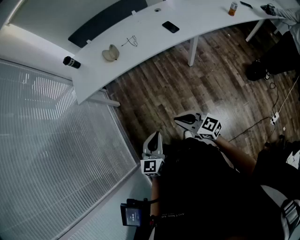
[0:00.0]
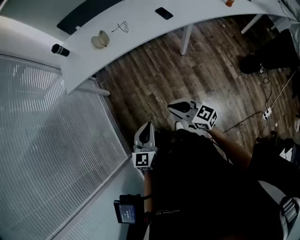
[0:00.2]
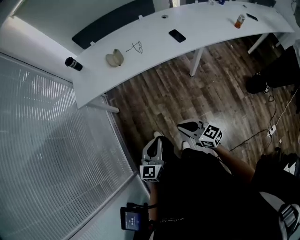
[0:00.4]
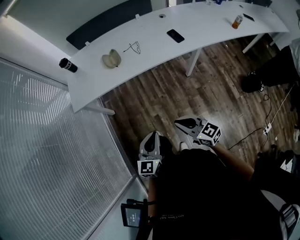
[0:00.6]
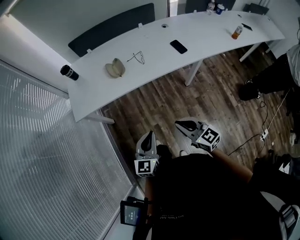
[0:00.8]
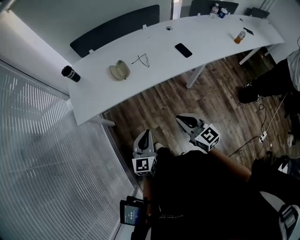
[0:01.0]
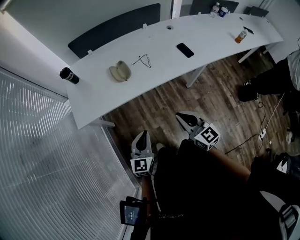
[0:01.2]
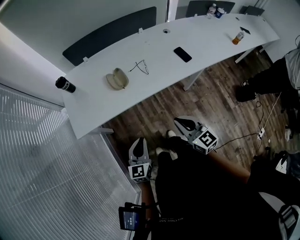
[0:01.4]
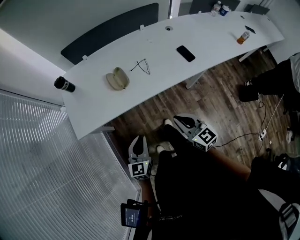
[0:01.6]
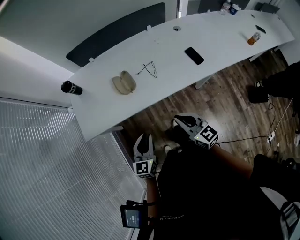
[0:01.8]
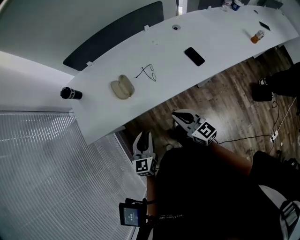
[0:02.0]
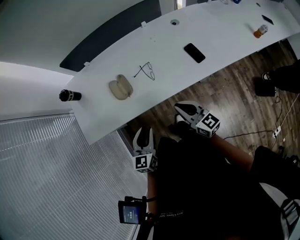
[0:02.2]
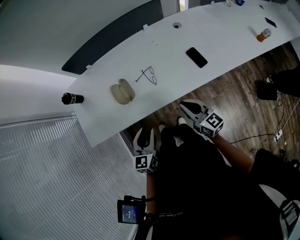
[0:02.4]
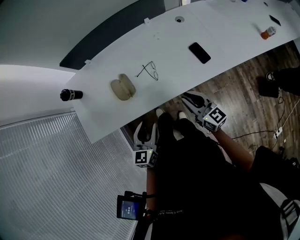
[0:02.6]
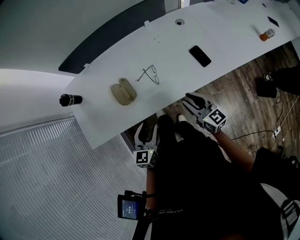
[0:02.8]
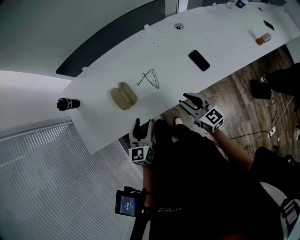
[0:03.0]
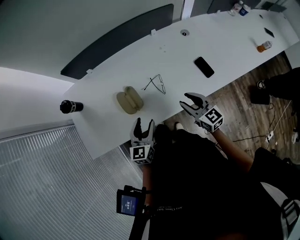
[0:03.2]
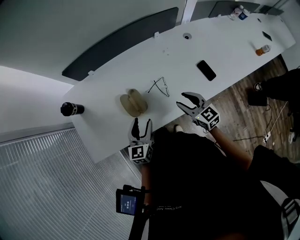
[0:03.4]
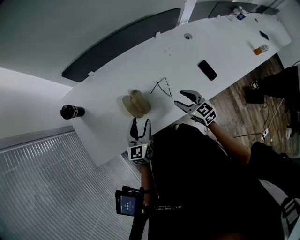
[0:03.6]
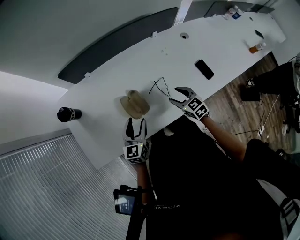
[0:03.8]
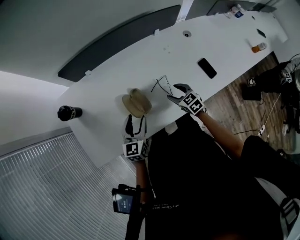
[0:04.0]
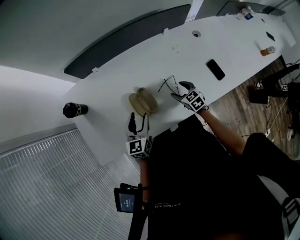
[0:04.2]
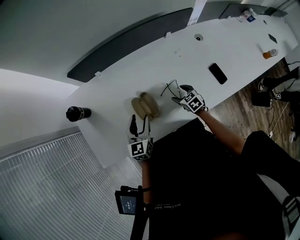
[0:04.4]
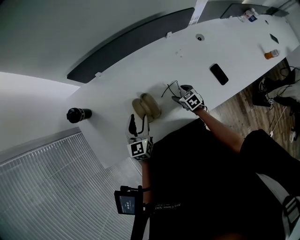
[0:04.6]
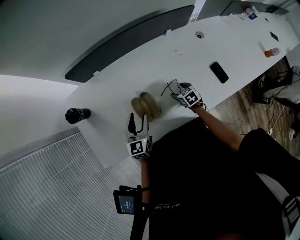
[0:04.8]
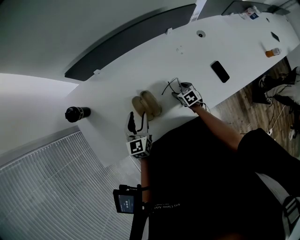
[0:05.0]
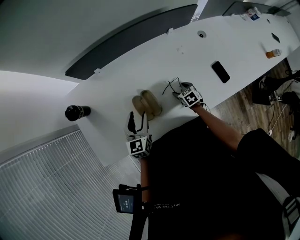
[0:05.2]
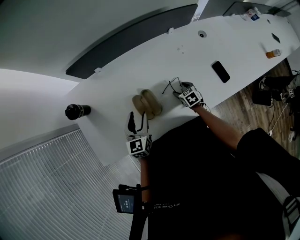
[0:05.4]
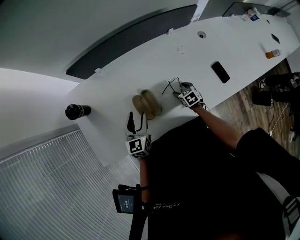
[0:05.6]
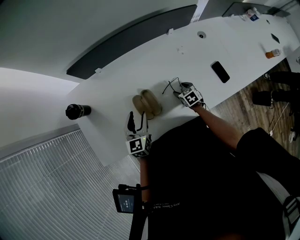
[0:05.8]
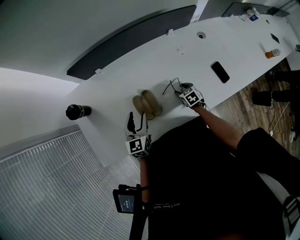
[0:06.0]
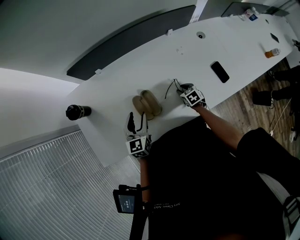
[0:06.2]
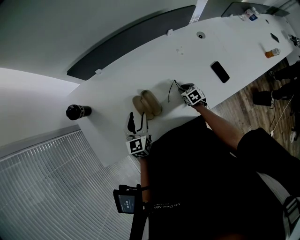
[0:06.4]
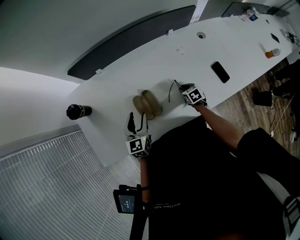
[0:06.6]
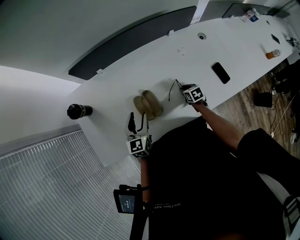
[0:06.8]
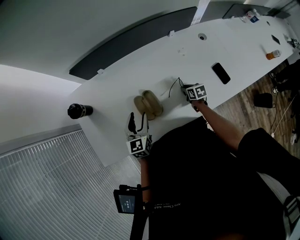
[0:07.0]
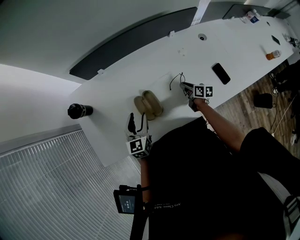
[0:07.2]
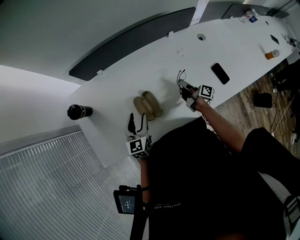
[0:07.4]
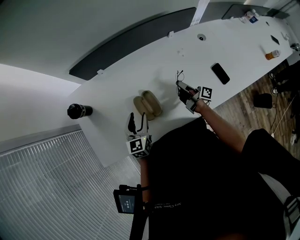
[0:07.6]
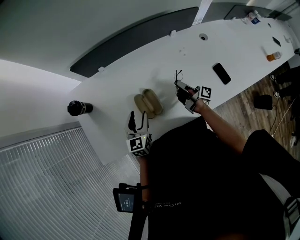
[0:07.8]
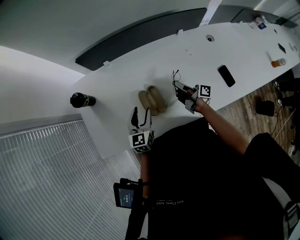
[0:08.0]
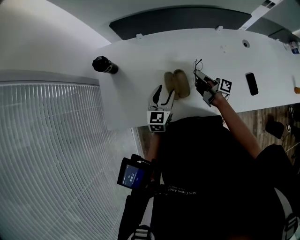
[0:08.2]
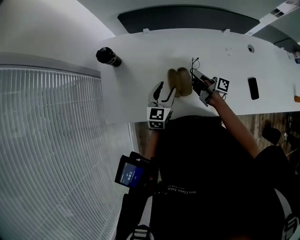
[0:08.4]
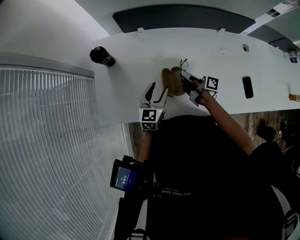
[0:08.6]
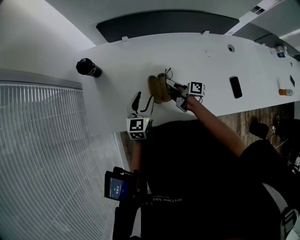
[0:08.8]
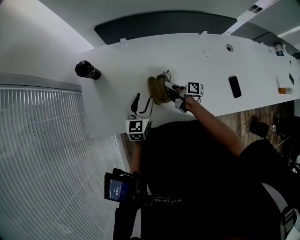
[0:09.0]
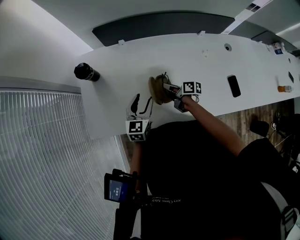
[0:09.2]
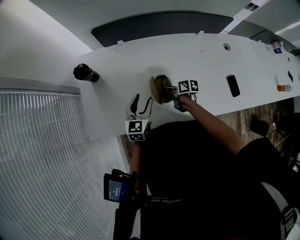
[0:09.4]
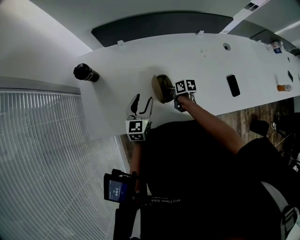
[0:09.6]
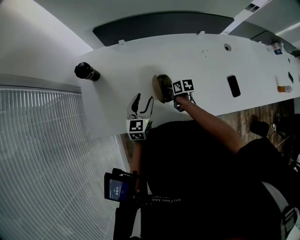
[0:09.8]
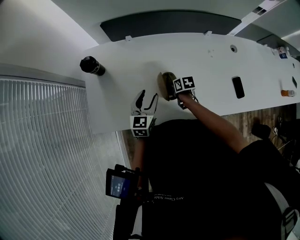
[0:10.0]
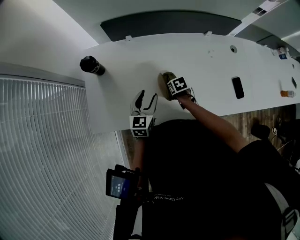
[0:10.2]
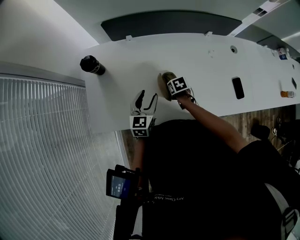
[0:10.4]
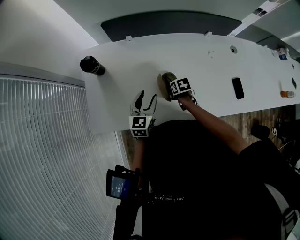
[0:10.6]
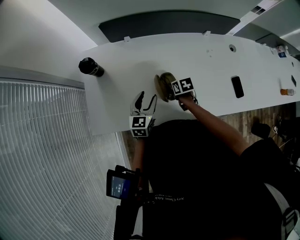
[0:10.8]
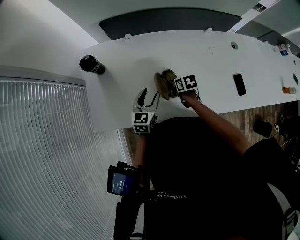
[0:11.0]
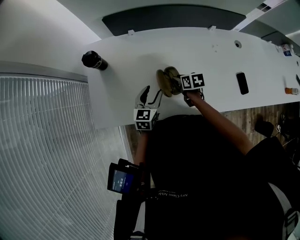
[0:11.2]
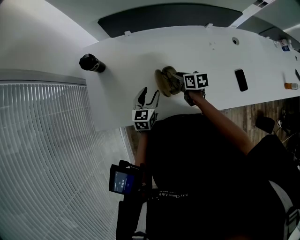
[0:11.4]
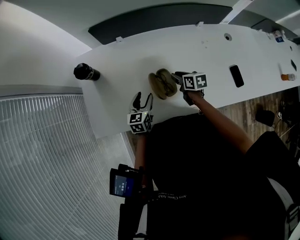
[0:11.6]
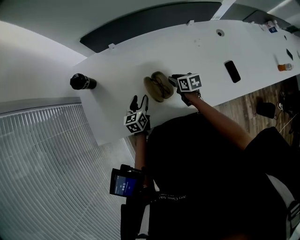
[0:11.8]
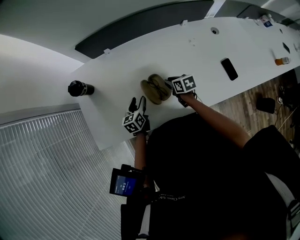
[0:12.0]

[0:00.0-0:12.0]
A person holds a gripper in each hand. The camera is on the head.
0:00.0 to 0:01.6: The grippers both shift forward by about 35 cm. The right gripper changes its angle by approximately 30 degrees.
0:01.6 to 0:03.0: The right gripper goes some 25 cm forward and to the right, and opens its fingers, while the left gripper shifts some 25 cm forward, and opens its fingers.
0:03.0 to 0:04.4: The right gripper goes approximately 30 cm downward, forward and to the left, points its fingers approximately 40 degrees further downward, and opens up. The left gripper is displaced forward and to the left by about 20 cm.
0:04.4 to 0:06.0: The right gripper heads downward, covering about 5 cm.
0:06.0 to 0:07.6: The right gripper moves upward, roughly 10 cm, tilts its fingers some 60 degrees upward, and closes up.
0:07.6 to 0:09.0: The right gripper travels to the left by about 20 cm, and rotates roughly 30 degrees.
0:09.0 to 0:10.4: The right gripper shifts roughly 5 cm downward, and tilts its fingers roughly 50 degrees downward.
0:10.4 to 0:12.0: The left gripper travels downward by some 10 cm, and turns by roughly 20 degrees, while the right gripper is displaced to the right by approximately 5 cm, and swivels approximately 20 degrees.

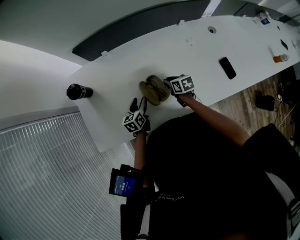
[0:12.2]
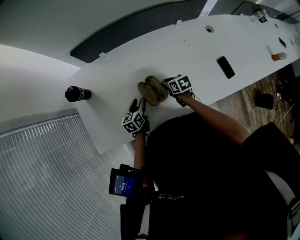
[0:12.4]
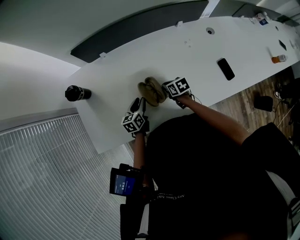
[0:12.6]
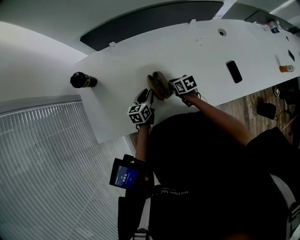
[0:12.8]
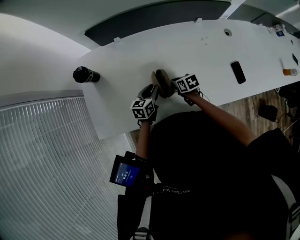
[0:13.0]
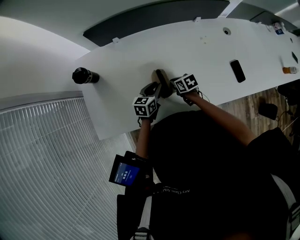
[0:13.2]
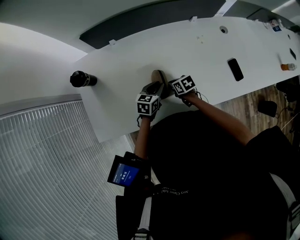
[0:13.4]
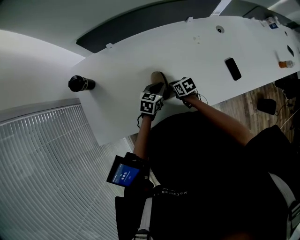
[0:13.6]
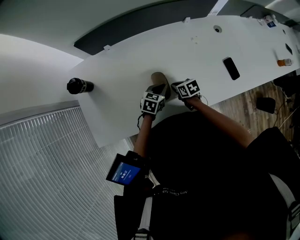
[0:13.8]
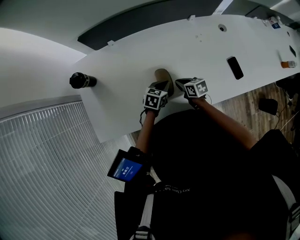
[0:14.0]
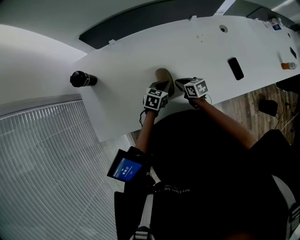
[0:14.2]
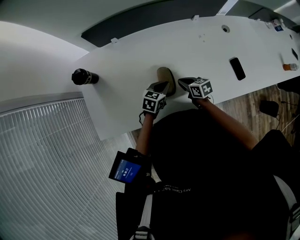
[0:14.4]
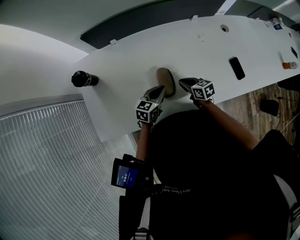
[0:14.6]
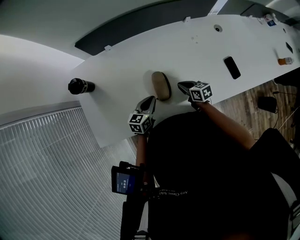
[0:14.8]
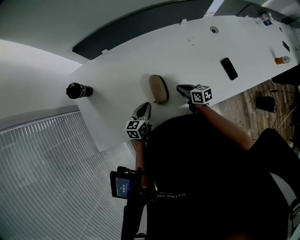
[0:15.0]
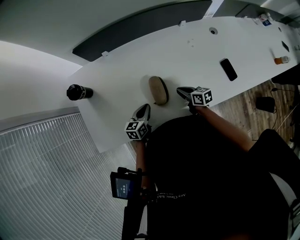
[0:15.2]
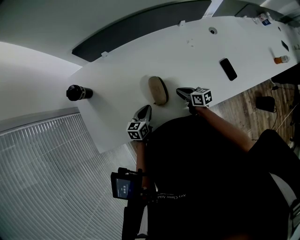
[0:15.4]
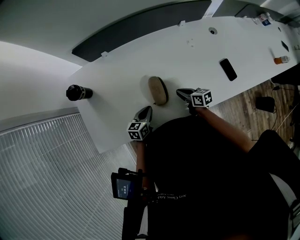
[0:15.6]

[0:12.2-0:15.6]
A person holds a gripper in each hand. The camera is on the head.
0:12.2 to 0:13.8: The left gripper goes approximately 15 cm to the right, swivels roughly 40 degrees, and closes its fingers, while the right gripper changes place by roughly 5 cm.
0:13.8 to 0:15.6: The right gripper moves roughly 5 cm, and changes its angle by about 20 degrees; the left gripper goes approximately 10 cm to the left and backward, and rotates about 20 degrees.

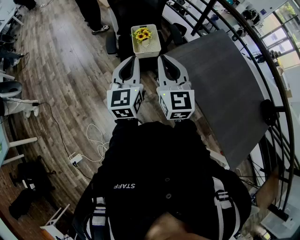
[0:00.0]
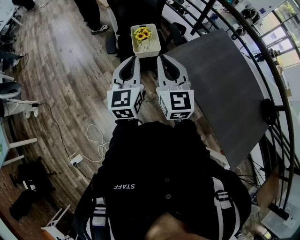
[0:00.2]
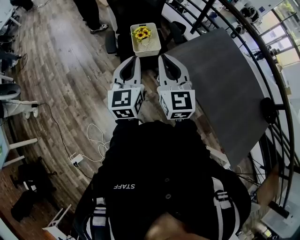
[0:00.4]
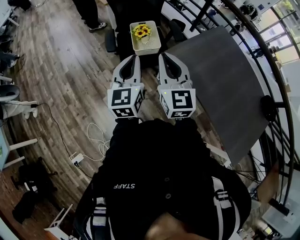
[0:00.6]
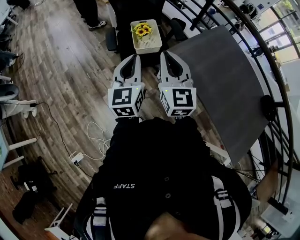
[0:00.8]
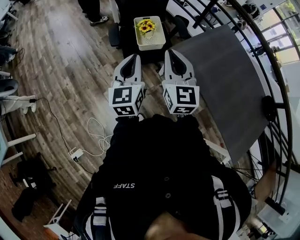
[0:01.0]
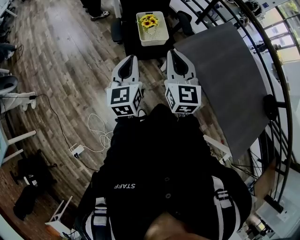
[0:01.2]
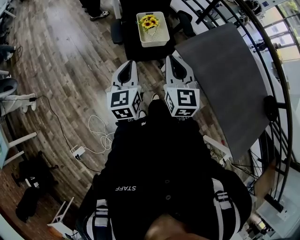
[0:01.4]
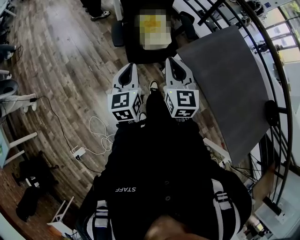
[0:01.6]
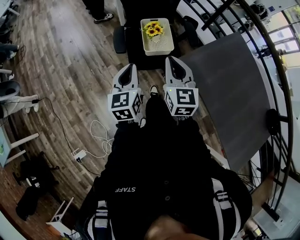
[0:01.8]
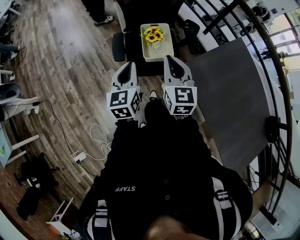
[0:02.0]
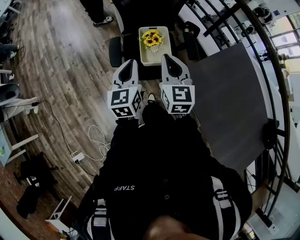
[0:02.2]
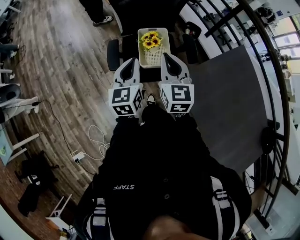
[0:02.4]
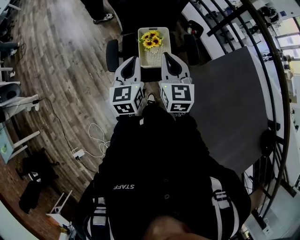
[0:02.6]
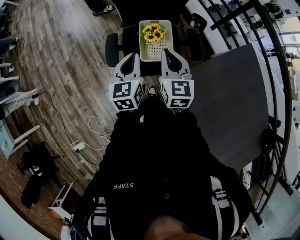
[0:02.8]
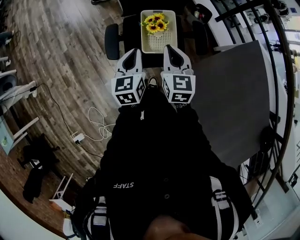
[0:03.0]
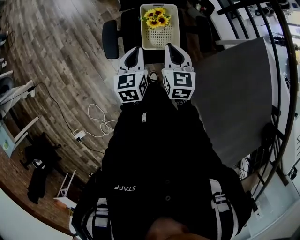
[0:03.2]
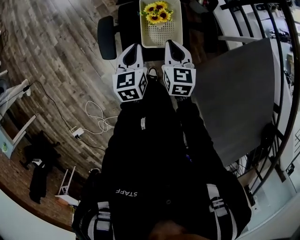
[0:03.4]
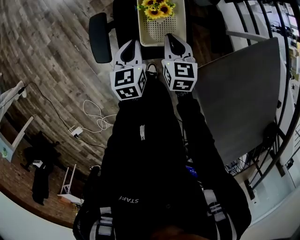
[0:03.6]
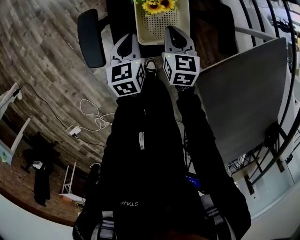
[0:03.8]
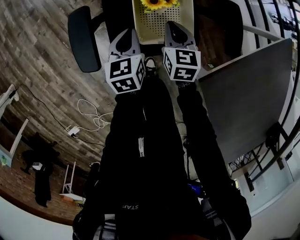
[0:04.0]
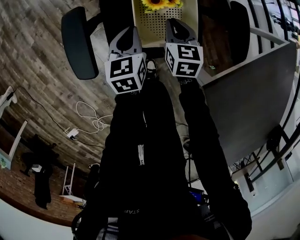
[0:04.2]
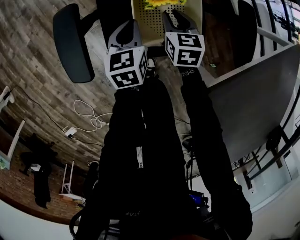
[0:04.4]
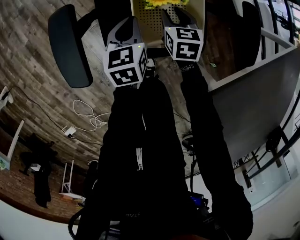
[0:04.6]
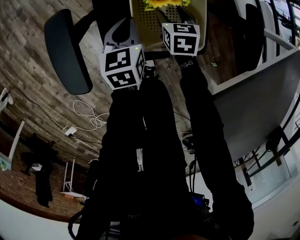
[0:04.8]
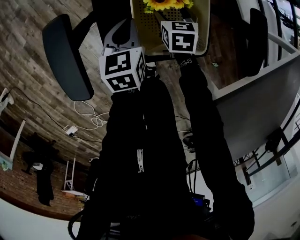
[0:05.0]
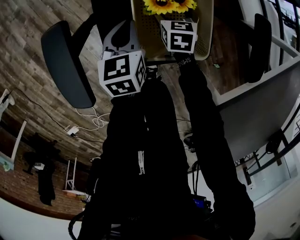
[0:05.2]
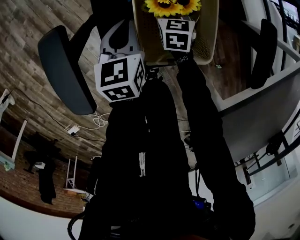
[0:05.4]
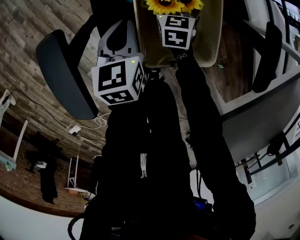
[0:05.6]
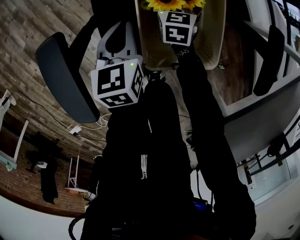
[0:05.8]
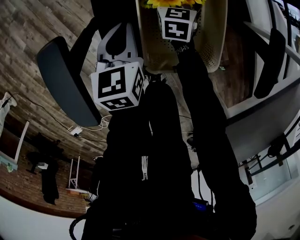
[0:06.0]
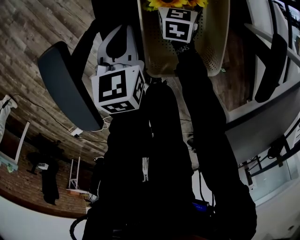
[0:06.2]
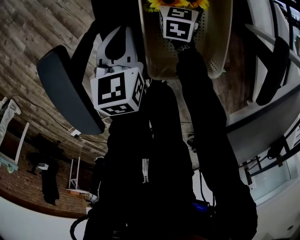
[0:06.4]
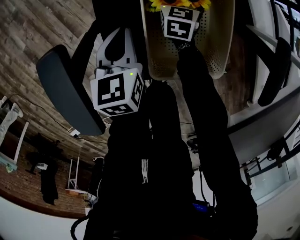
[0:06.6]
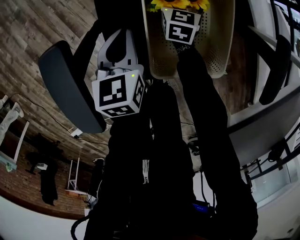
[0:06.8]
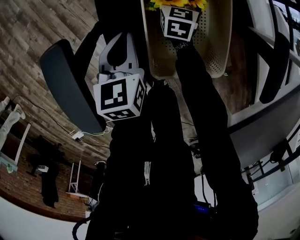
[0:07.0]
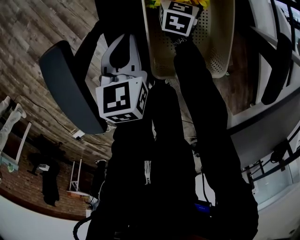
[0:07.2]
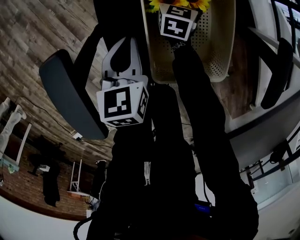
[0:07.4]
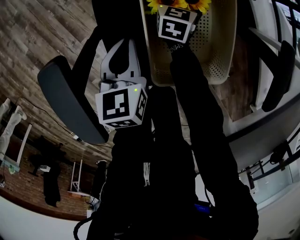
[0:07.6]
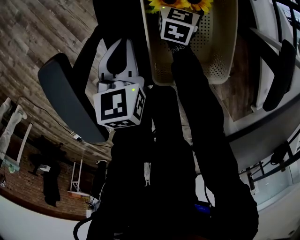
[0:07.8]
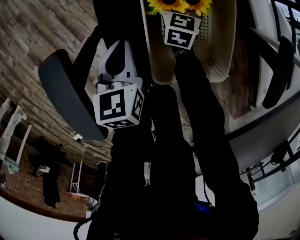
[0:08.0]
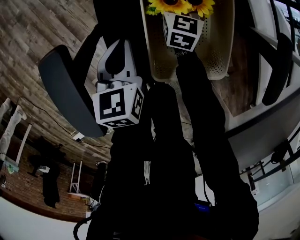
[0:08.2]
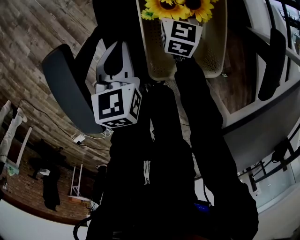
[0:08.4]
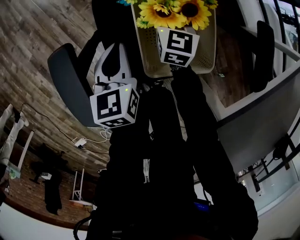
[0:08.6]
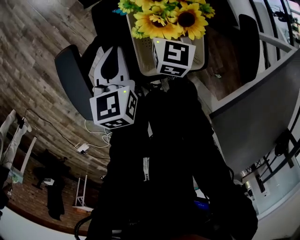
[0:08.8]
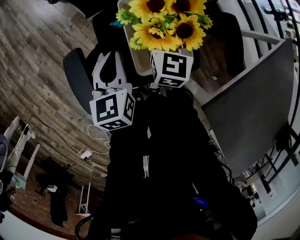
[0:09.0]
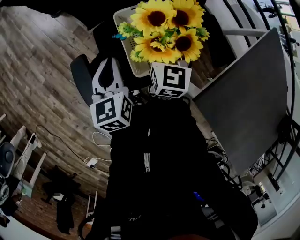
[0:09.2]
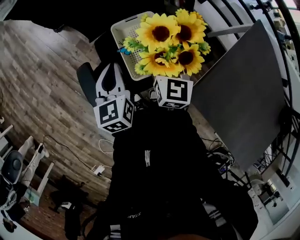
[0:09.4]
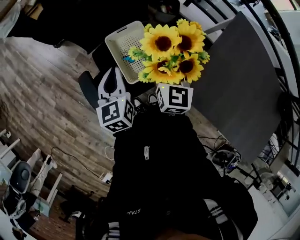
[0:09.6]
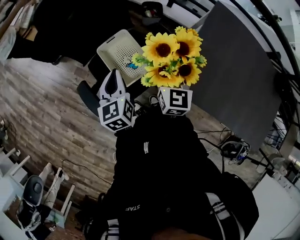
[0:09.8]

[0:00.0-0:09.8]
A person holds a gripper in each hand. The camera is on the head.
0:00.0 to 0:01.4: The left gripper shifts approximately 15 cm to the left and downward, while the right gripper shifts some 10 cm downward and to the left.
0:01.4 to 0:02.8: The two grippers go some 30 cm forward.
0:02.8 to 0:04.2: The grippers both shift downward by roughly 50 cm. The right gripper changes its angle by approximately 20 degrees.
0:04.2 to 0:05.6: The right gripper shifts approximately 20 cm downward and forward, and opens, while the left gripper shifts about 10 cm downward and forward.
0:05.6 to 0:07.0: The right gripper heads forward, covering roughly 5 cm.
0:07.0 to 0:08.4: The right gripper heads upward, covering approximately 5 cm.
0:08.4 to 0:09.8: The right gripper moves upward, to the right and backward, roughly 60 cm, and turns by about 30 degrees. The left gripper shifts approximately 40 cm upward and to the right, and turns by some 20 degrees.
